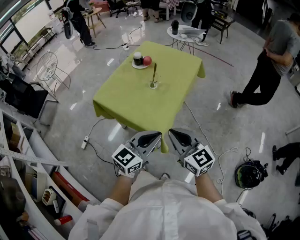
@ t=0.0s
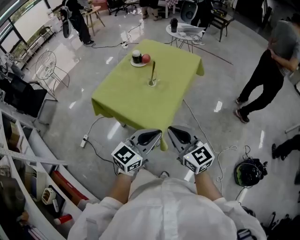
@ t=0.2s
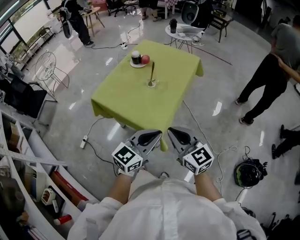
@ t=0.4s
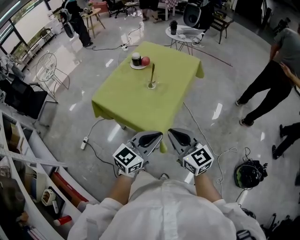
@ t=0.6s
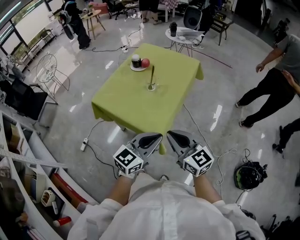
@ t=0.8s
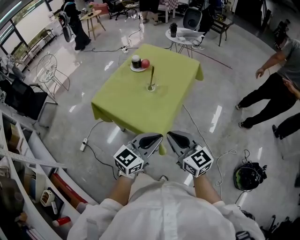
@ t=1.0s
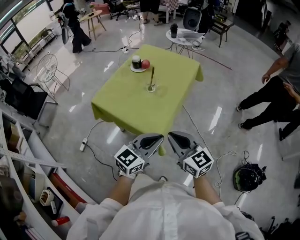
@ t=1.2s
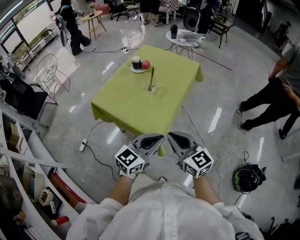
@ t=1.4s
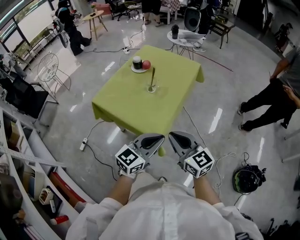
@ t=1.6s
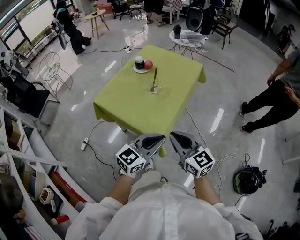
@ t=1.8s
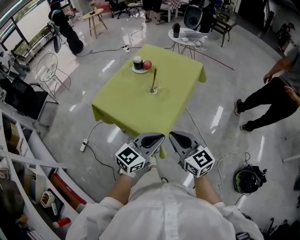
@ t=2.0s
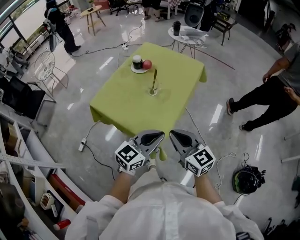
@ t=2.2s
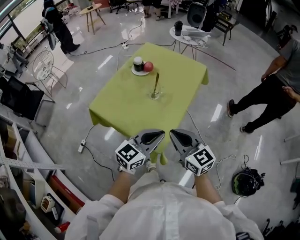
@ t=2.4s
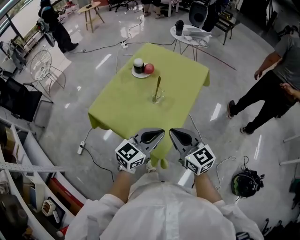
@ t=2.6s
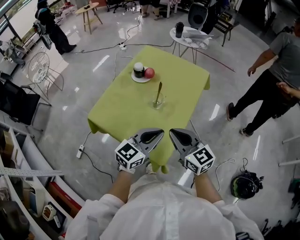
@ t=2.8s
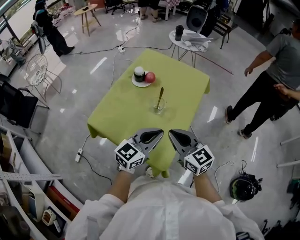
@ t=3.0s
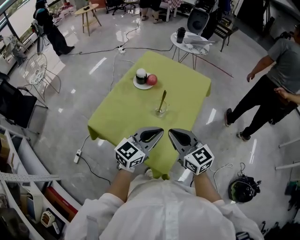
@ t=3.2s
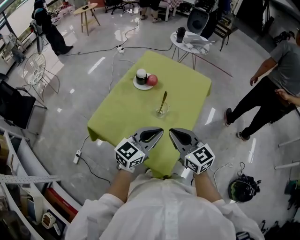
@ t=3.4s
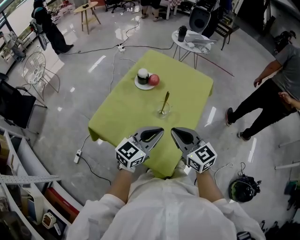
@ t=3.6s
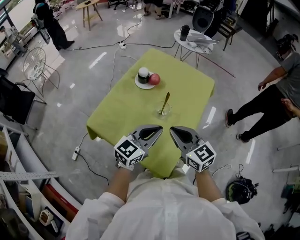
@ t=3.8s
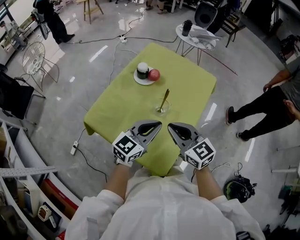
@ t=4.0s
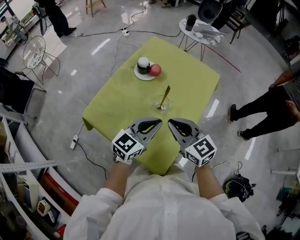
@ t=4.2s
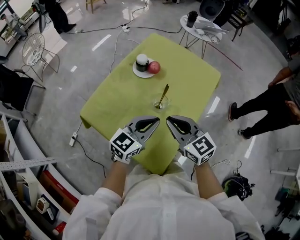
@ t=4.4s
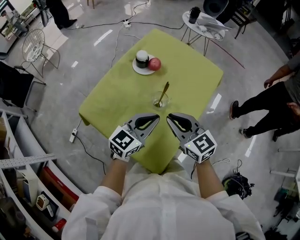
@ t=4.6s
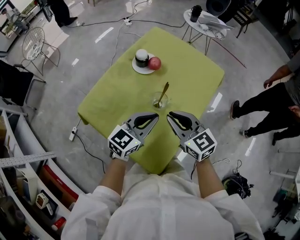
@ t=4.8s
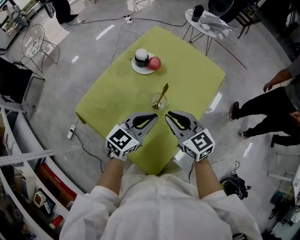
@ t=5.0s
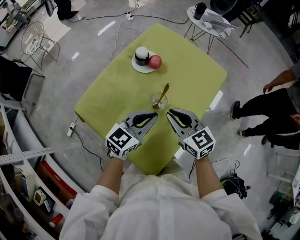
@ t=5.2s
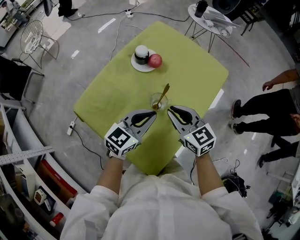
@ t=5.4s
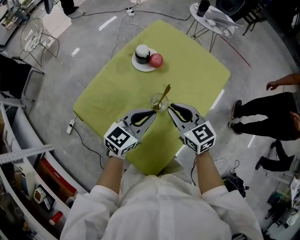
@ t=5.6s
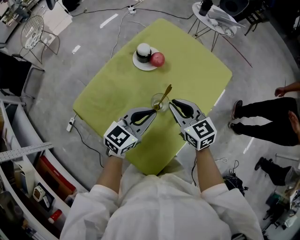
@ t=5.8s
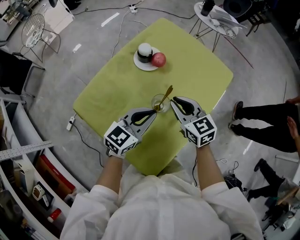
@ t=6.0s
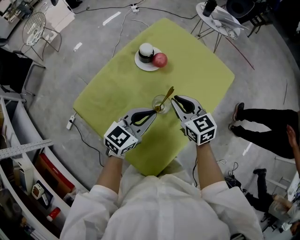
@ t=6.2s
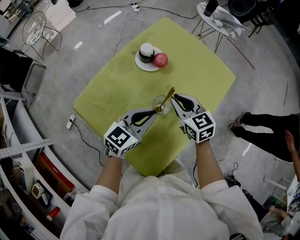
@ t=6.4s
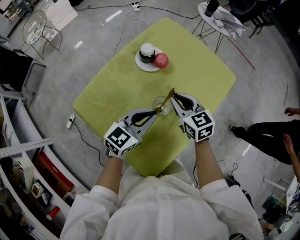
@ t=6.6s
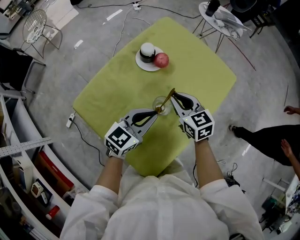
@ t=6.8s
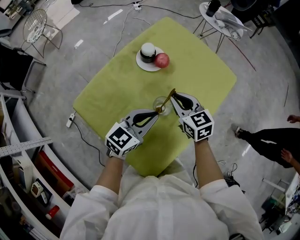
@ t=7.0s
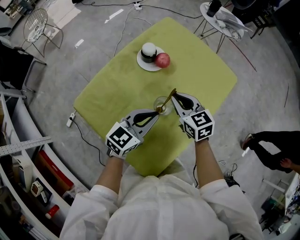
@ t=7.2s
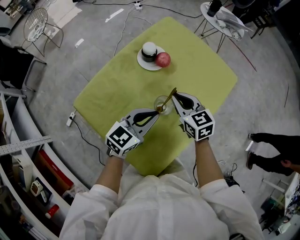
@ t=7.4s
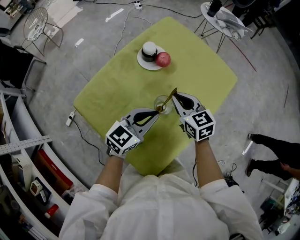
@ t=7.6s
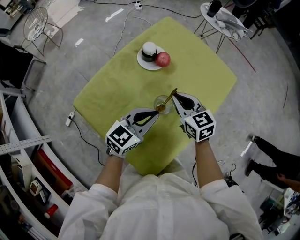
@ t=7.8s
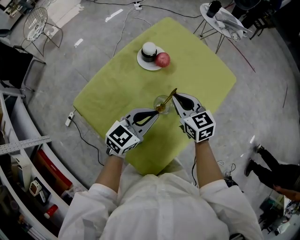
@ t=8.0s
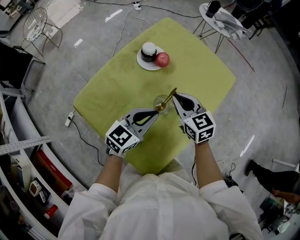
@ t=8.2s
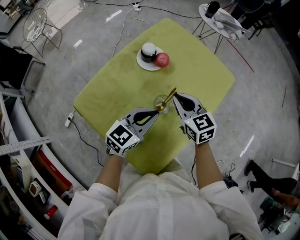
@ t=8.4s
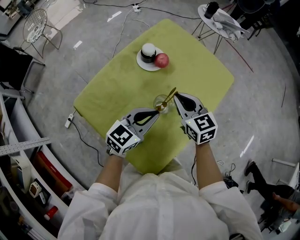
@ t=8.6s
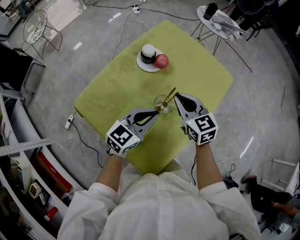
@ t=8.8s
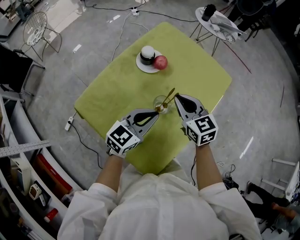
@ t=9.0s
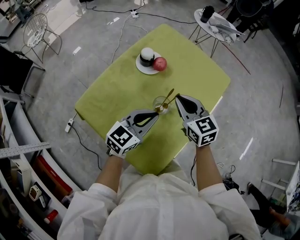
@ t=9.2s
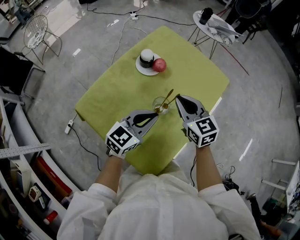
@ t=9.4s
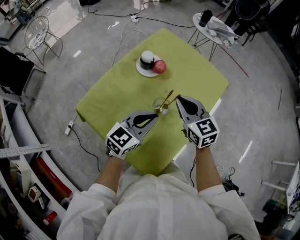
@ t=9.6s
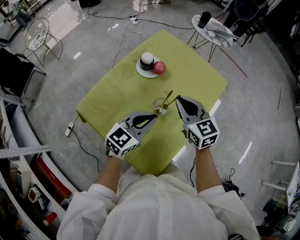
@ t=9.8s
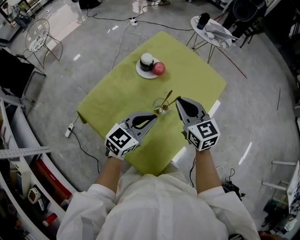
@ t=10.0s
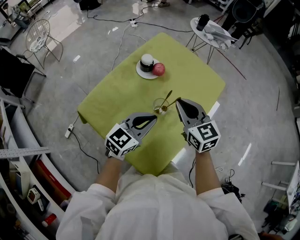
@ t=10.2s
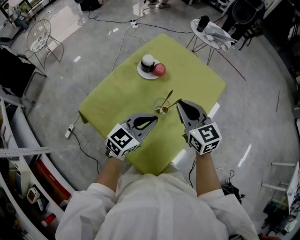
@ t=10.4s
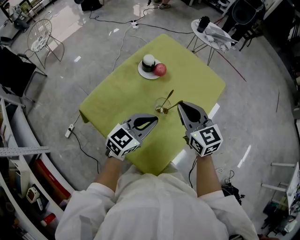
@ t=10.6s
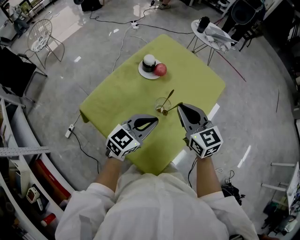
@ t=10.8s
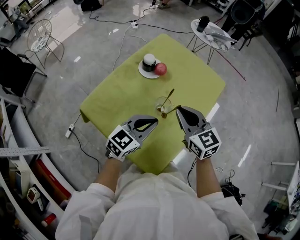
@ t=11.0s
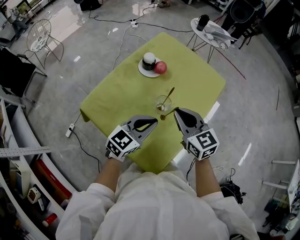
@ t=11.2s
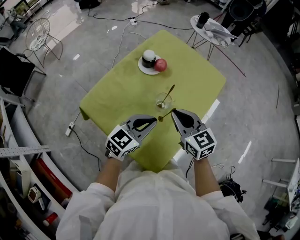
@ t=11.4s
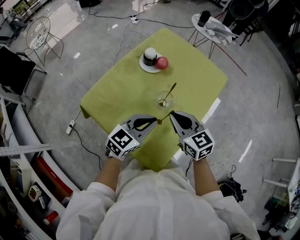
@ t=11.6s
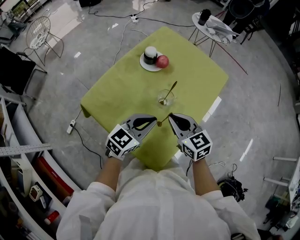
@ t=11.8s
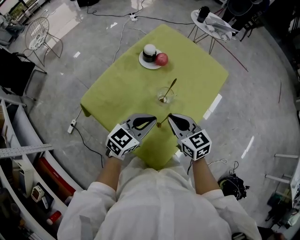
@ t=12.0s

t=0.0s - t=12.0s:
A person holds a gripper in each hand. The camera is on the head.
t=0.0s - t=1.6s: The grippers stay close to where they were, moving slightly.
t=1.6s - t=3.0s: The left gripper heads forward, covering about 15 cm. Meanwhile the right gripper moves forward and to the left, roughly 15 cm.
t=3.0s - t=4.4s: The grippers both shift forward by about 5 cm.
t=4.4s - t=6.0s: The left gripper shifts by roughly 5 cm. The right gripper moves forward and downward, roughly 10 cm.
t=6.0s - t=9.0s: The grippers move only a little.
t=9.0s - t=10.4s: The right gripper travels upward by some 5 cm.
t=10.4s - t=12.0s: The right gripper heads backward and downward, covering approximately 10 cm. The left gripper moves approximately 5 cm.

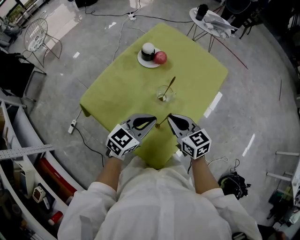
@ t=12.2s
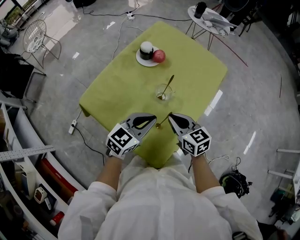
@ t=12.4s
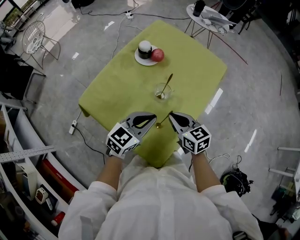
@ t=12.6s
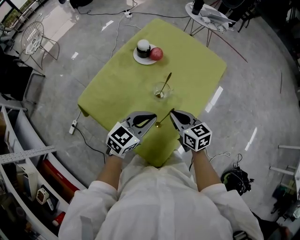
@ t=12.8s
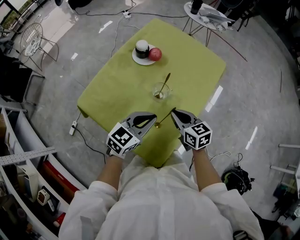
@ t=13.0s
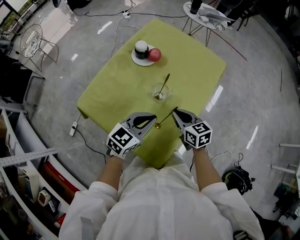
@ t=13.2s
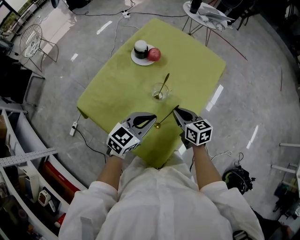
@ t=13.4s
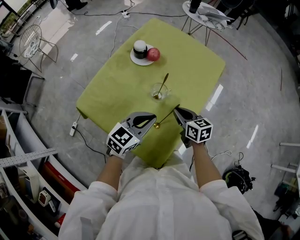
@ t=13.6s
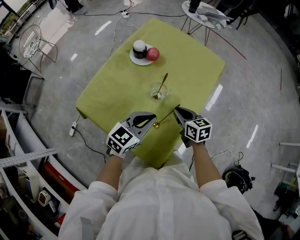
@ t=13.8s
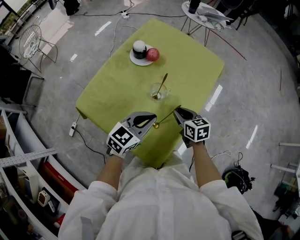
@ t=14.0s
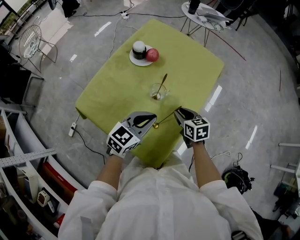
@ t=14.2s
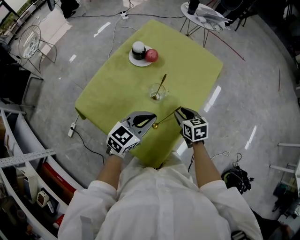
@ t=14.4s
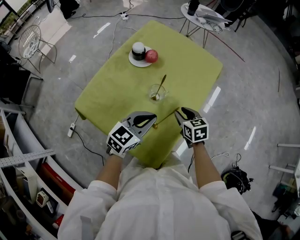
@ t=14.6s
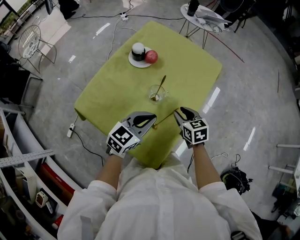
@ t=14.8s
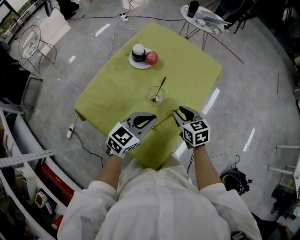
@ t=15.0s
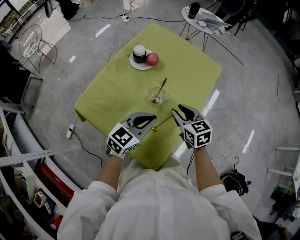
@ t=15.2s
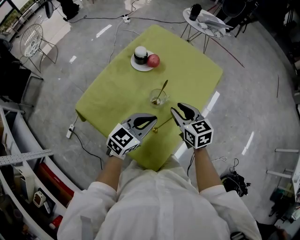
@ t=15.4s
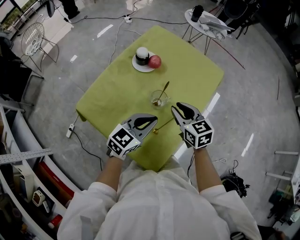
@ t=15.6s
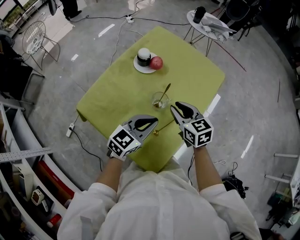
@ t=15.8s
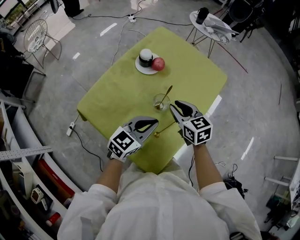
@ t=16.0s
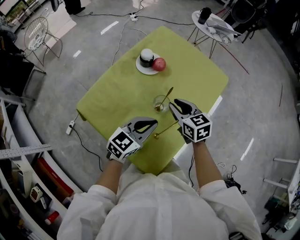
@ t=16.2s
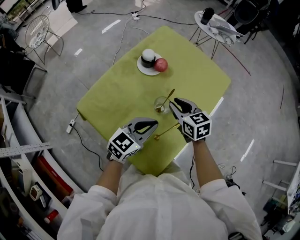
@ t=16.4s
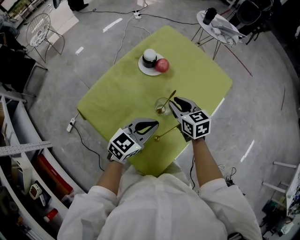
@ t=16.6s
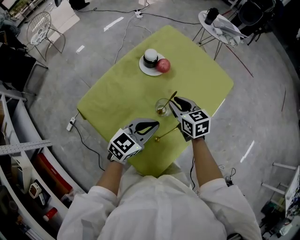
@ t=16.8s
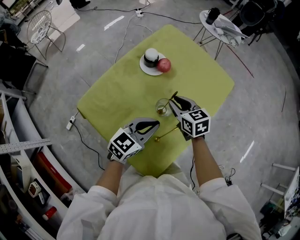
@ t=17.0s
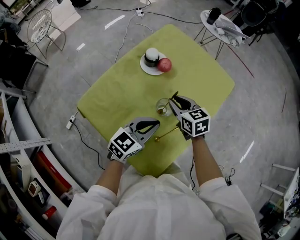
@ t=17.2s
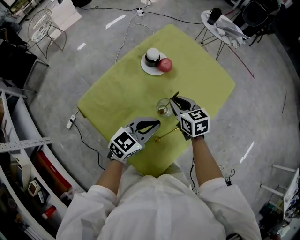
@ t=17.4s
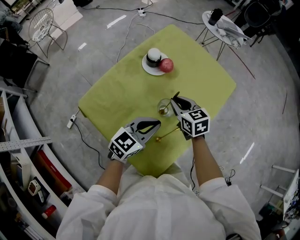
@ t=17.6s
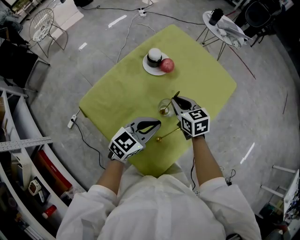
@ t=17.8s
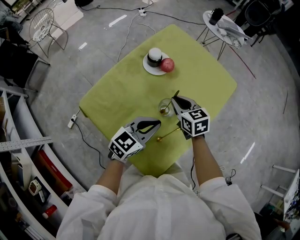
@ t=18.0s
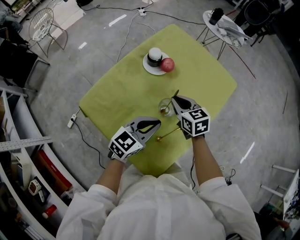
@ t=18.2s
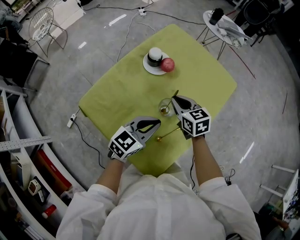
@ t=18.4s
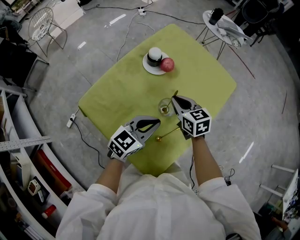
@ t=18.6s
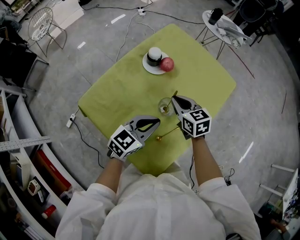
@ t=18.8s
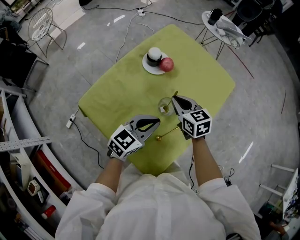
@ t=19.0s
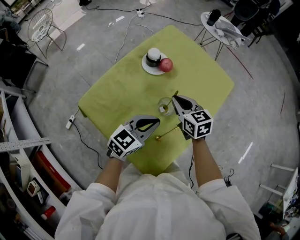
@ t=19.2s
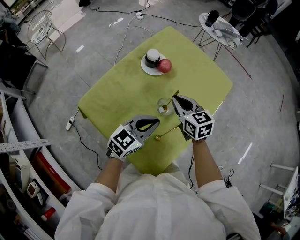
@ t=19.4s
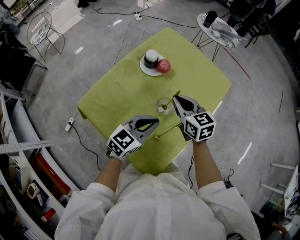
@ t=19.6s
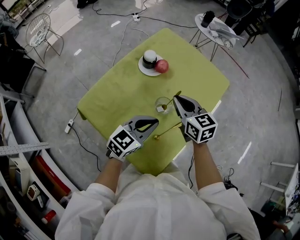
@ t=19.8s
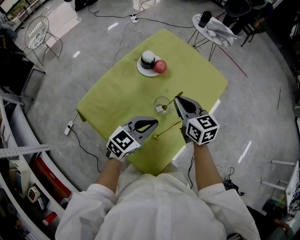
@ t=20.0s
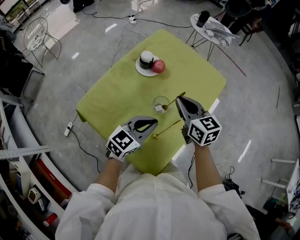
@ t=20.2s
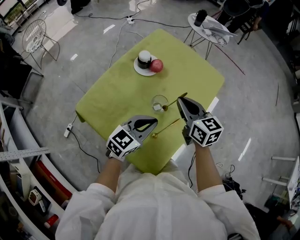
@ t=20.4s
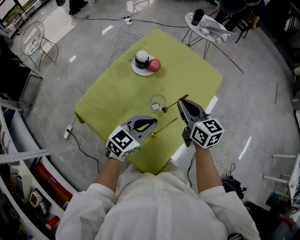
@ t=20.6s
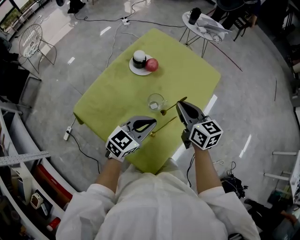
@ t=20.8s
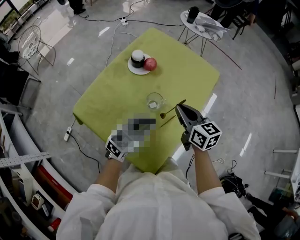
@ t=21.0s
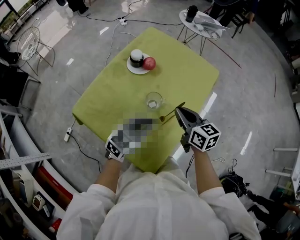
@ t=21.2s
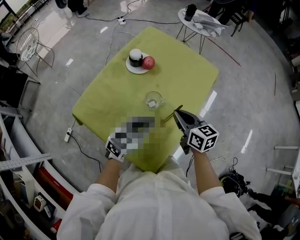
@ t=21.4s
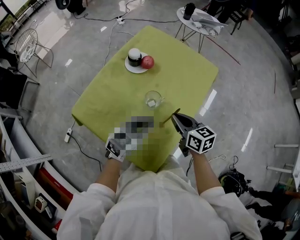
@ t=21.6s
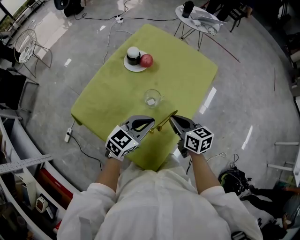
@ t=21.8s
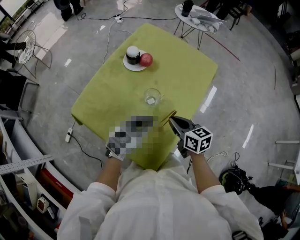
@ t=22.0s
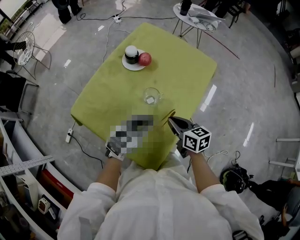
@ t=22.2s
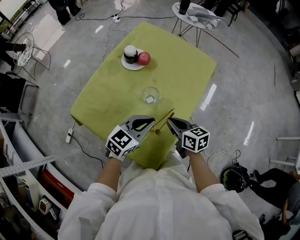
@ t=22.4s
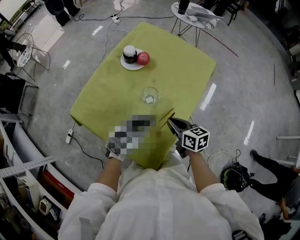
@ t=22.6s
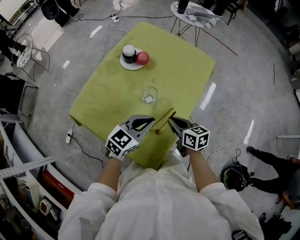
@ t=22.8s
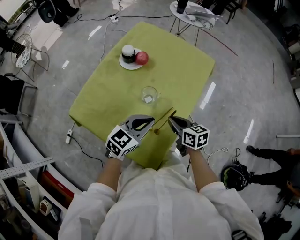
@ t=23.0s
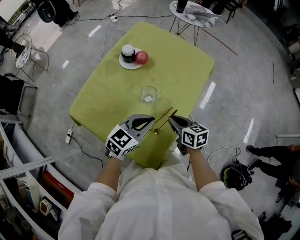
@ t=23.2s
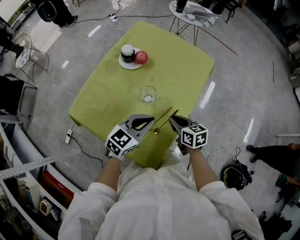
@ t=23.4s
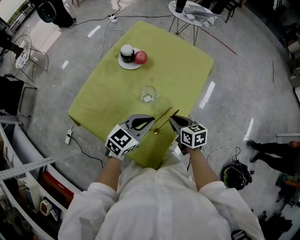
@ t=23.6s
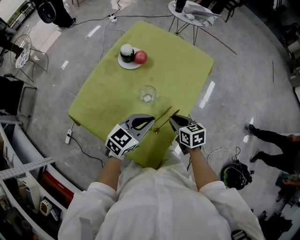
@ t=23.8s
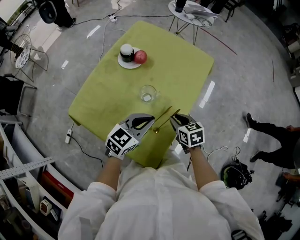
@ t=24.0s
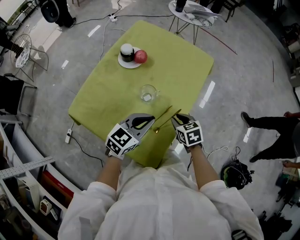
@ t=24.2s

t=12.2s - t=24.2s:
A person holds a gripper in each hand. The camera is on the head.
t=12.2s - t=13.8s: The right gripper heads downward and to the right, covering roughly 10 cm.
t=13.8s - t=15.2s: The right gripper travels upward by some 5 cm, and opens.
t=15.2s - t=16.6s: The right gripper is displaced forward and to the left by roughly 10 cm.
t=16.6s - t=18.2s: There are only small adjustments of the grippers.
t=18.2s - t=19.8s: The right gripper is displaced upward by about 5 cm.
t=19.8s - t=21.2s: The right gripper shifts roughly 10 cm to the right and backward.
t=21.2s - t=22.6s: The right gripper is displaced downward and backward by approximately 10 cm.
t=22.6s - t=24.2s: The right gripper shifts by some 5 cm, changes its angle by some 30 degrees, and opens its fingers.
